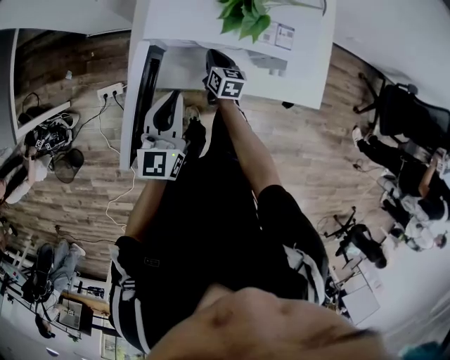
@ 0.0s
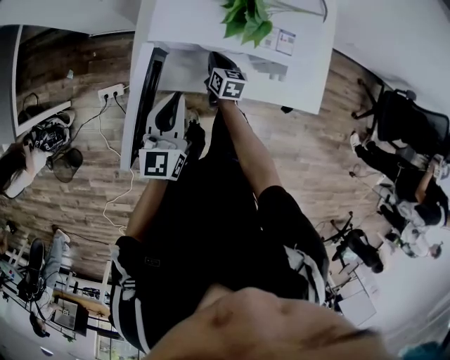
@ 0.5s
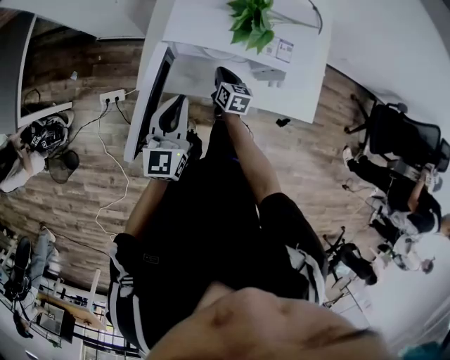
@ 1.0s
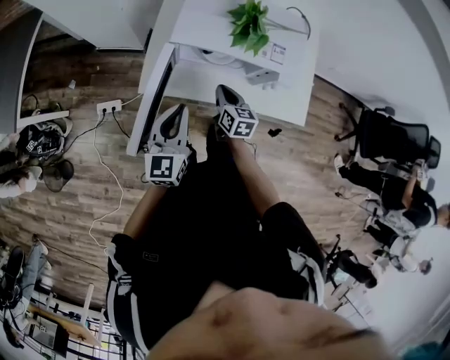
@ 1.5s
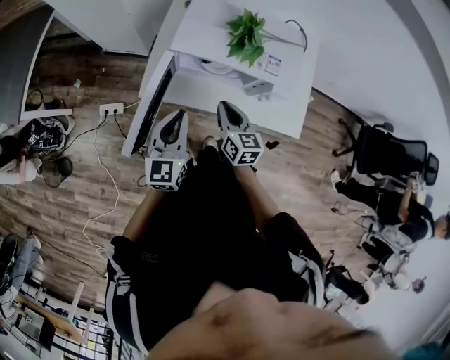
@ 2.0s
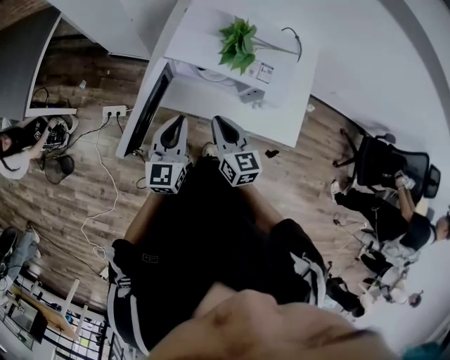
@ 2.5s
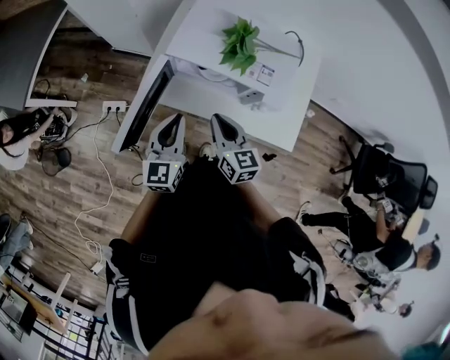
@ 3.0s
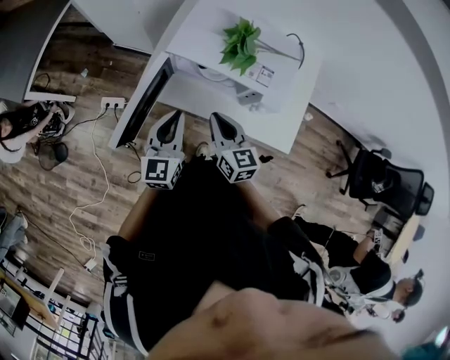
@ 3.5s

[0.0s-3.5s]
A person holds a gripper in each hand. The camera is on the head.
0.0s to 2.0s: The left gripper ends up some 10 cm from where it was.

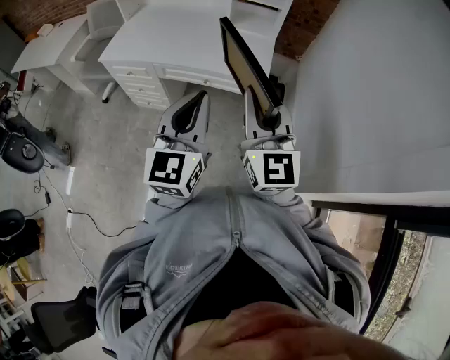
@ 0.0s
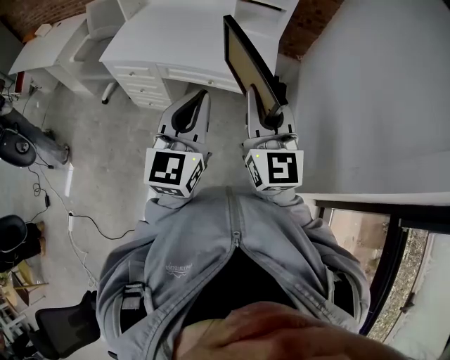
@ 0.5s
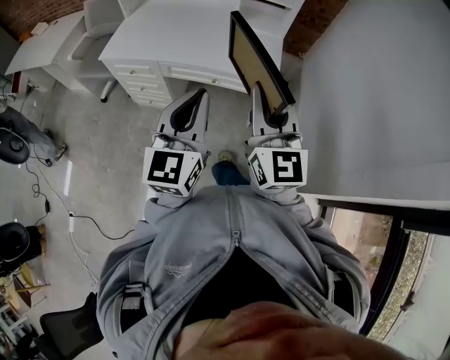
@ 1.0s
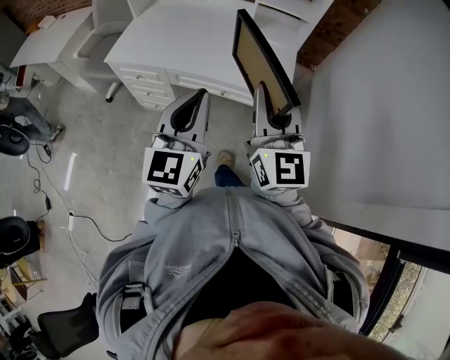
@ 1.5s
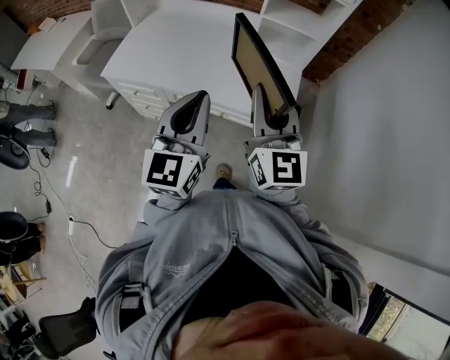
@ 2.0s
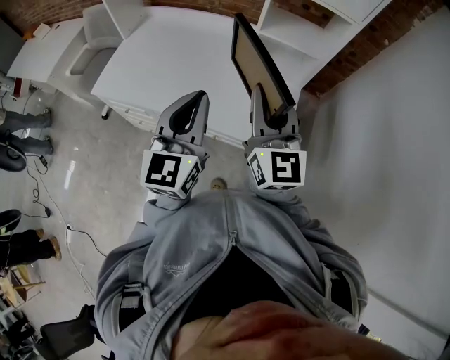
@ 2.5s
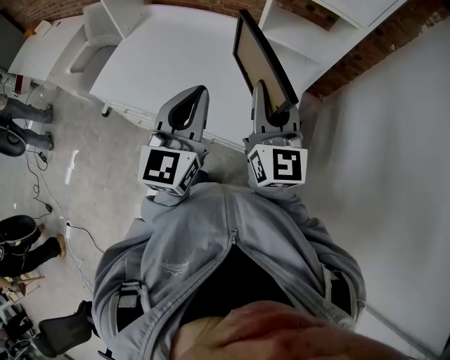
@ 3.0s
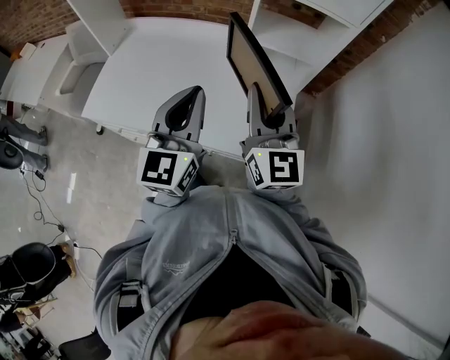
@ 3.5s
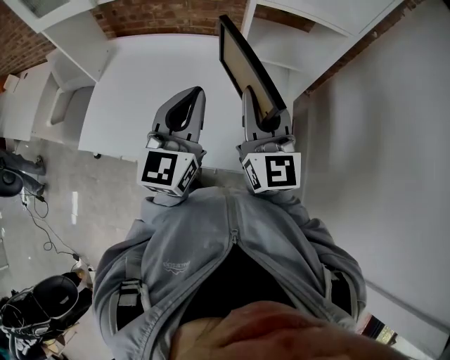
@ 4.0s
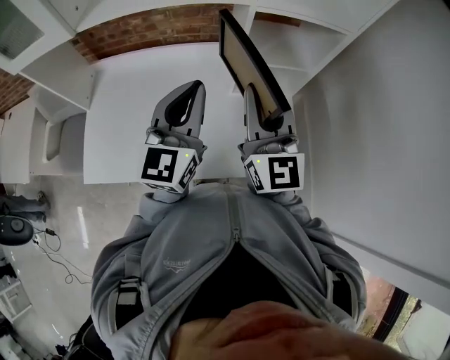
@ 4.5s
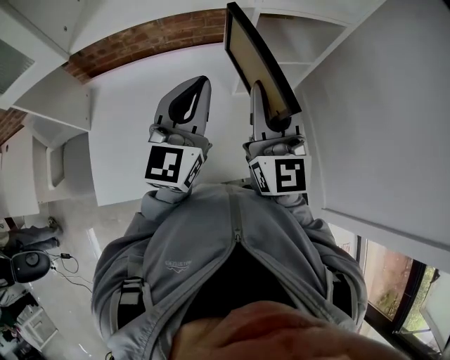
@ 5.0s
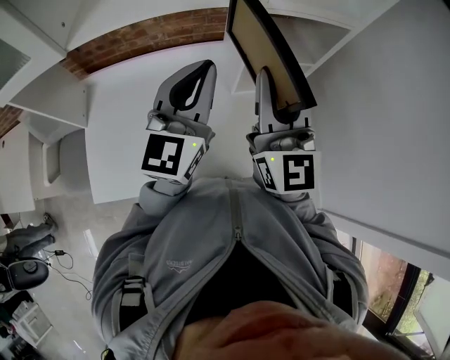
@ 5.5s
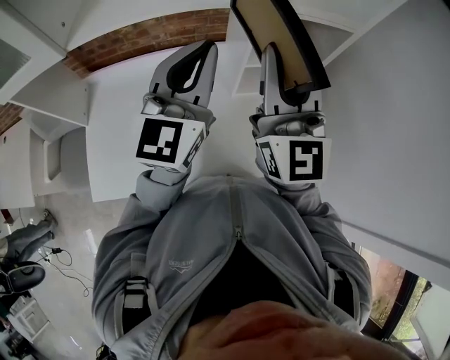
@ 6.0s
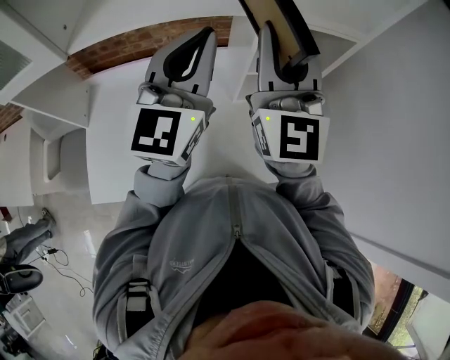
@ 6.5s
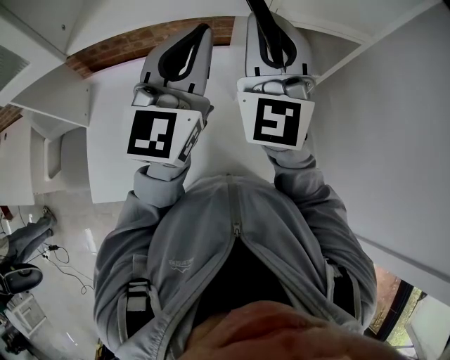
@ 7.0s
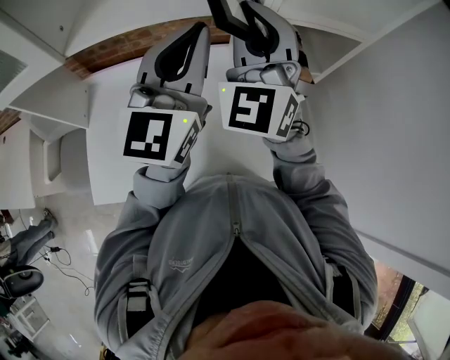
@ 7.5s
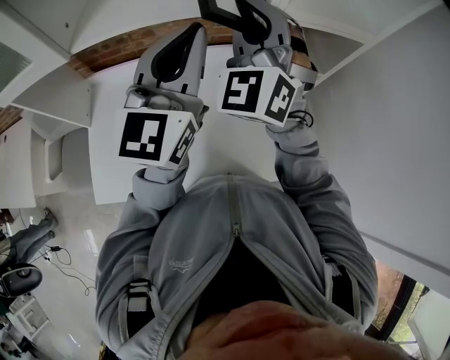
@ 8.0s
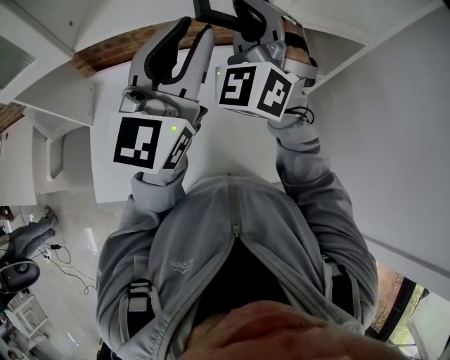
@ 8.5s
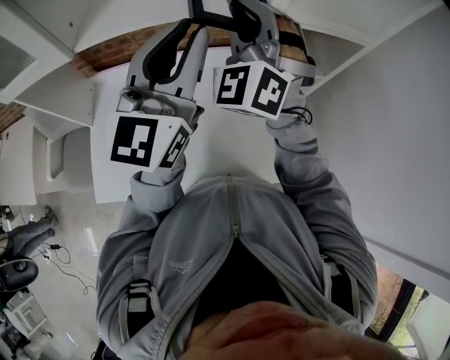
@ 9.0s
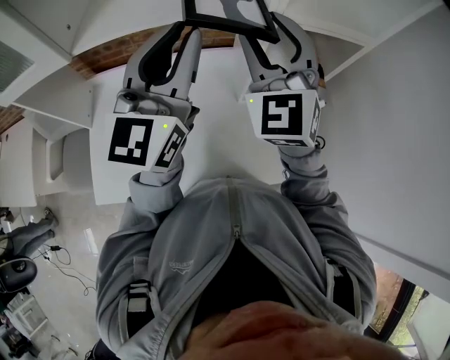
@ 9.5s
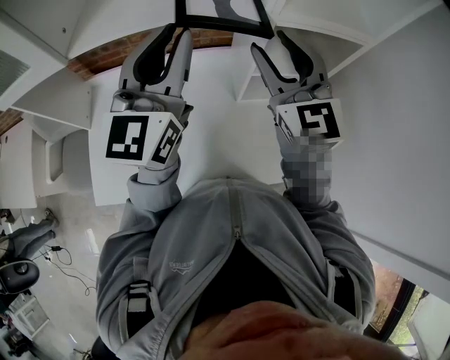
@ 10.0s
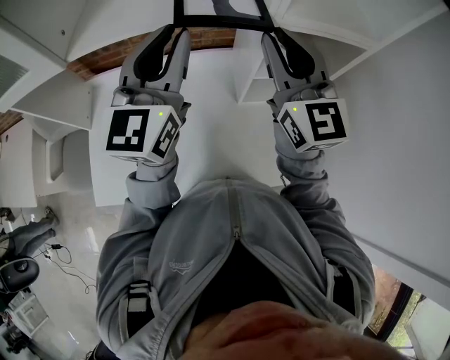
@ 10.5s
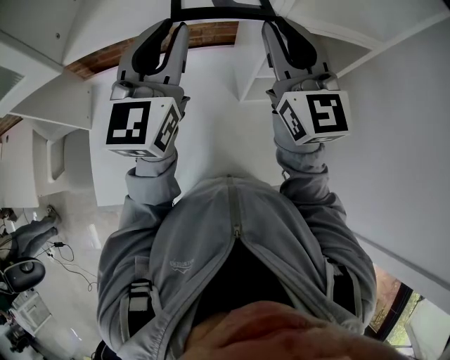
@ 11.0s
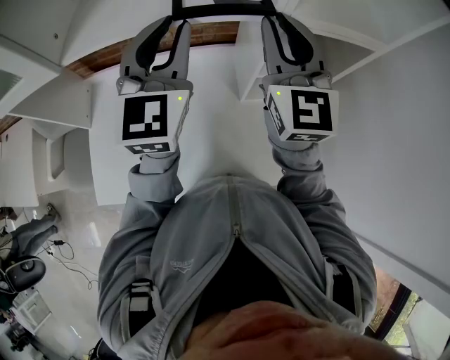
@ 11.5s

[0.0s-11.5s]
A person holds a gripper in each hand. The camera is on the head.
0.0s to 2.0s: The two grippers go approximately 25 cm forward.
2.0s to 4.0s: The two grippers go approximately 15 cm forward.
4.0s to 6.0s: The right gripper moves upward, forward and to the left, roughly 15 cm, and changes its angle by roughly 20 degrees. Meanwhile the left gripper heads forward, upward and to the left, covering about 15 cm.
6.0s to 7.5s: The right gripper is displaced forward and to the left by some 10 cm, and swivels approximately 40 degrees.
7.5s to 9.5s: The right gripper opens up.
9.5s to 11.5s: The left gripper goes about 5 cm forward, and turns by roughly 20 degrees, while the right gripper rotates roughly 30 degrees, and closes up.

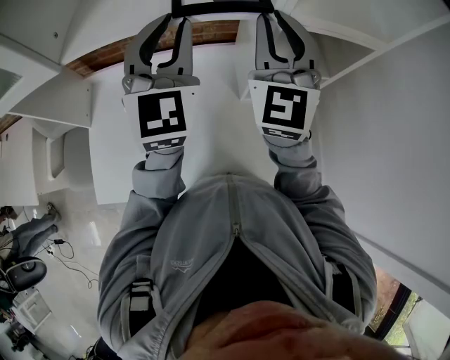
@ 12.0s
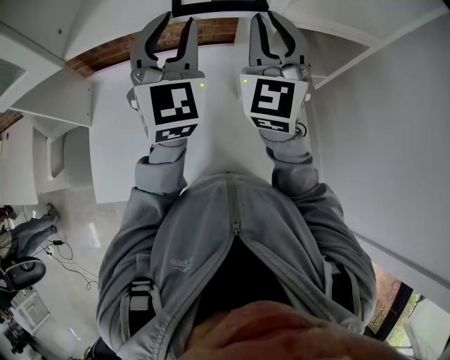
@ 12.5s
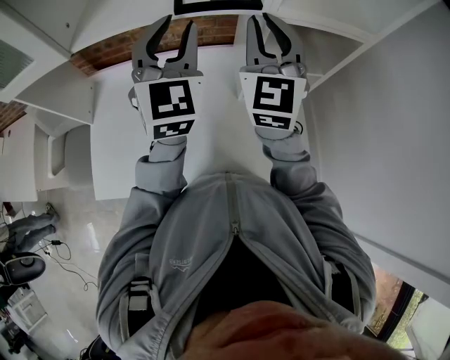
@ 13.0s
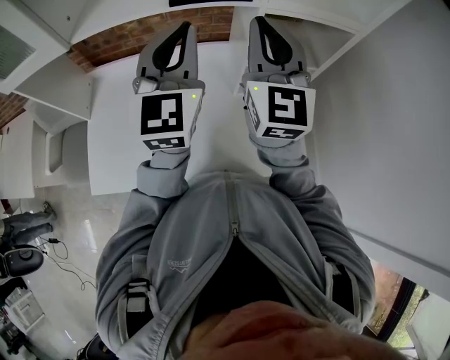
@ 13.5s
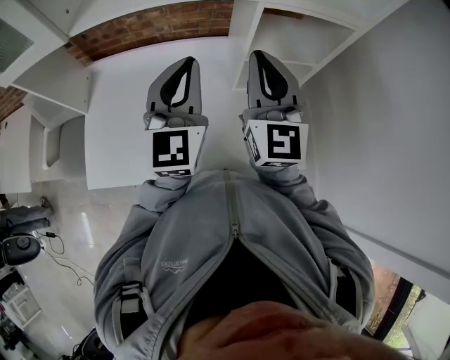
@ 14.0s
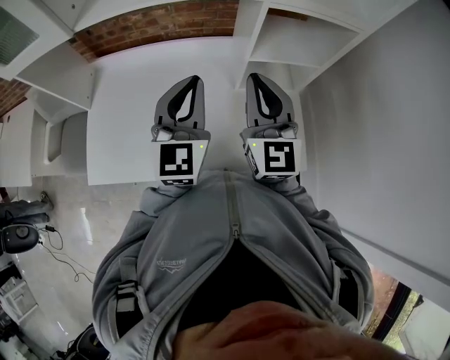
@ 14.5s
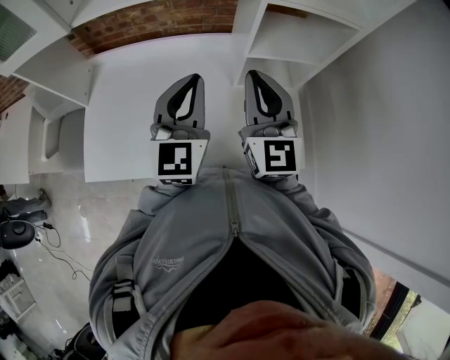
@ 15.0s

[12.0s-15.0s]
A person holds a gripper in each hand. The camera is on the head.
12.0s to 13.5s: The grippers both shift backward by roughly 5 cm.
13.5s to 15.0s: Both grippers travel together downward and backward, roughly 15 cm.

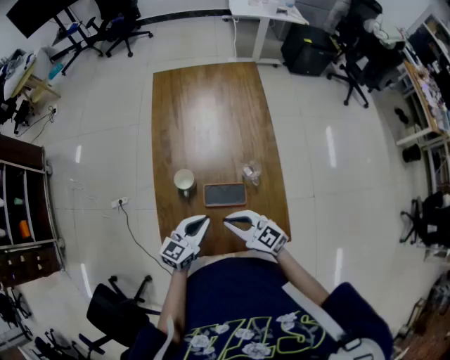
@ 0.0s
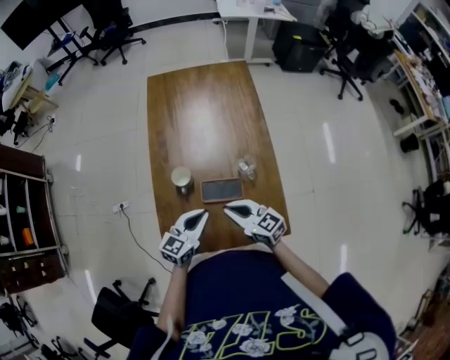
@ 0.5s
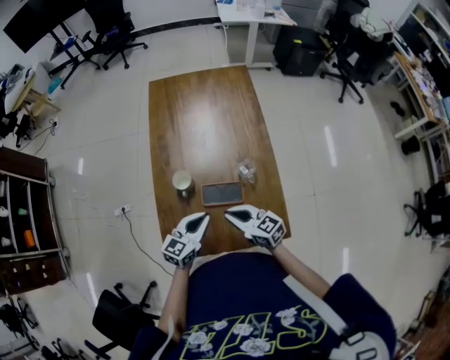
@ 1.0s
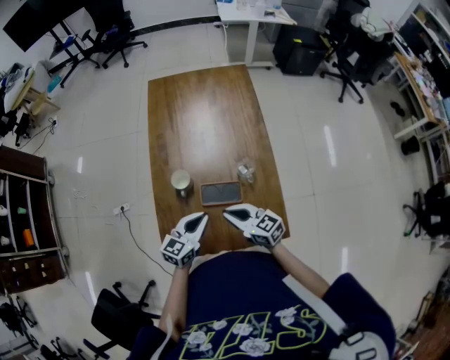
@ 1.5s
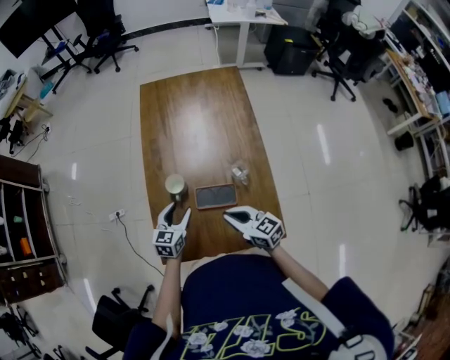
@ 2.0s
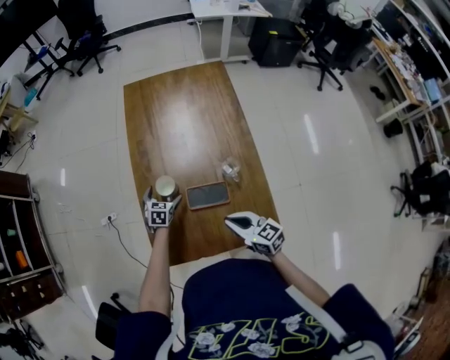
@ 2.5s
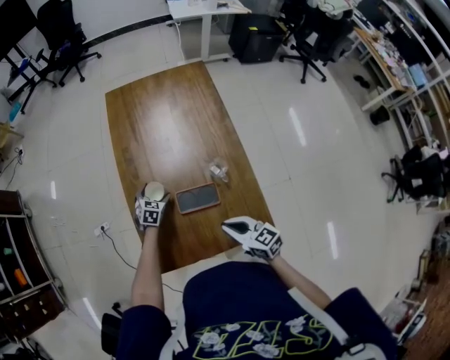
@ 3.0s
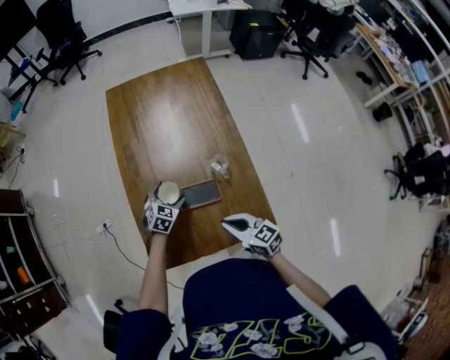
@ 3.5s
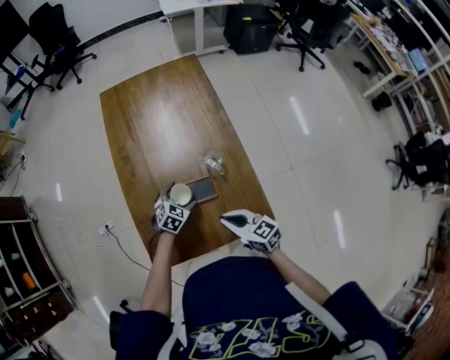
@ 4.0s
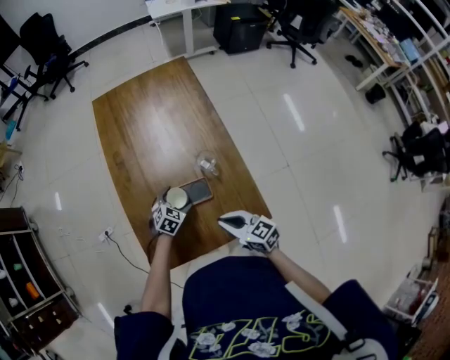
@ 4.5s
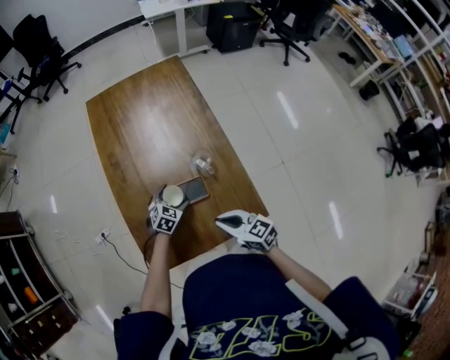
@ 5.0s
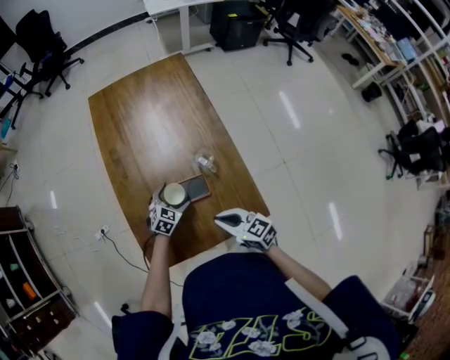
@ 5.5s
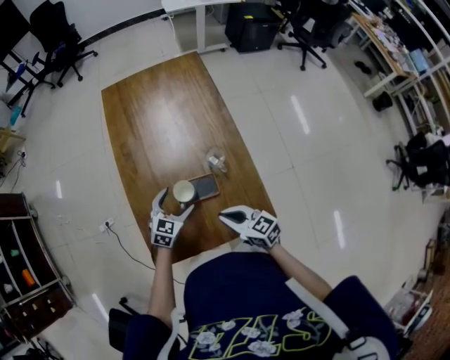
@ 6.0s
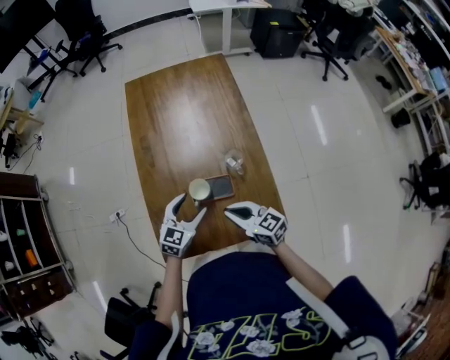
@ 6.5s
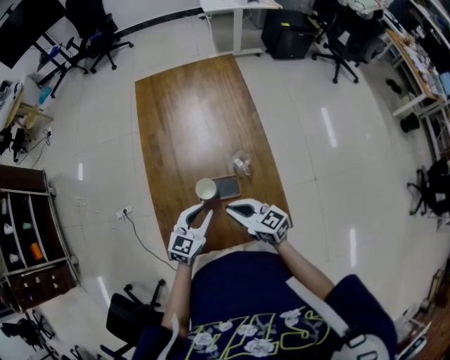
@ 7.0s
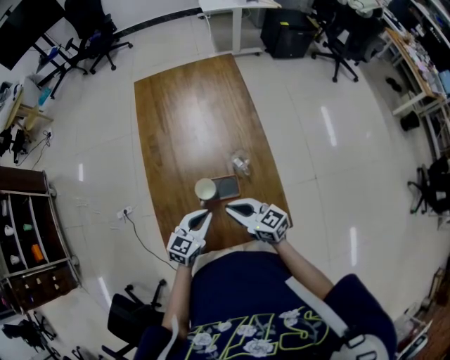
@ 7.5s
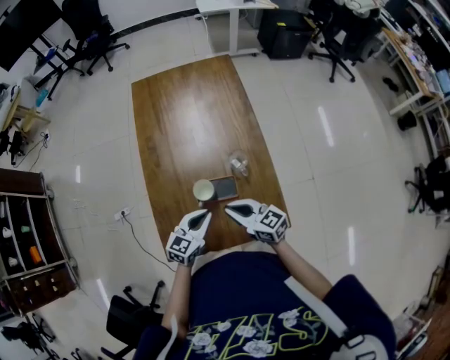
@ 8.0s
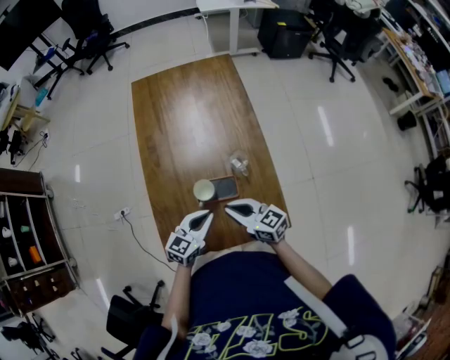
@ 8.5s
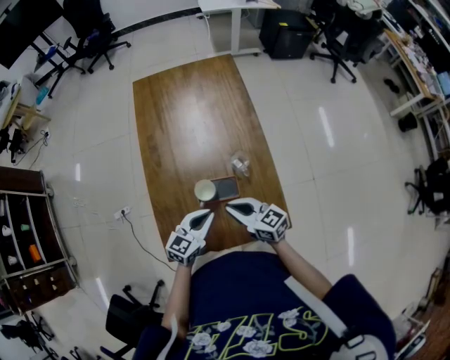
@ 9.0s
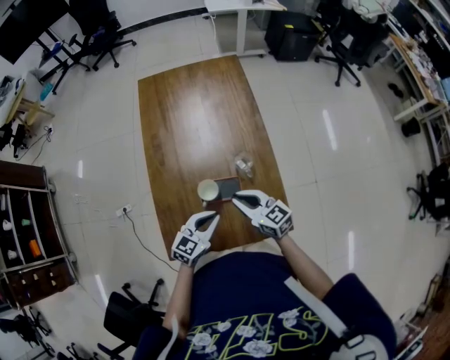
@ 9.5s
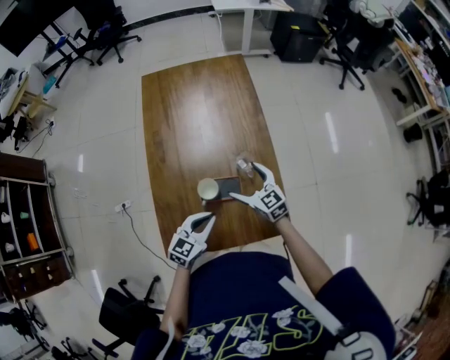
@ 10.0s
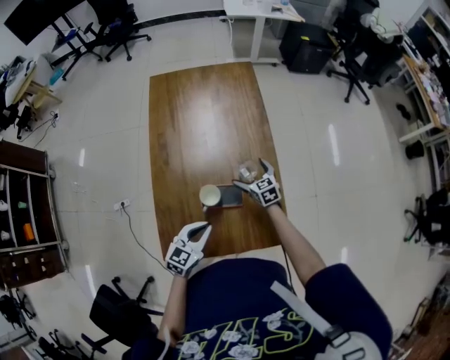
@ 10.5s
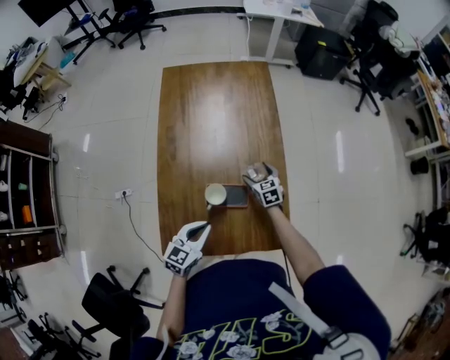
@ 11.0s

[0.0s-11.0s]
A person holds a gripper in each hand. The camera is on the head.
0.0s to 2.0s: The left gripper is displaced forward, to the left and downward by about 10 cm, swivels roughly 20 degrees, and opens up.
2.0s to 3.5s: The left gripper moves downward, forward and to the right, roughly 10 cm, swivels about 30 degrees, and opens up, while the right gripper changes place by some 5 cm.
3.5s to 5.5s: The left gripper goes roughly 5 cm to the right.
5.5s to 7.5s: The left gripper travels upward and backward by some 15 cm, turns by roughly 30 degrees, and closes; the right gripper heads forward, covering roughly 5 cm.
7.5s to 9.0s: The grippers move only a little.
9.0s to 11.0s: The right gripper moves forward and downward, roughly 25 cm, changes its angle by roughly 40 degrees, and opens its fingers.
